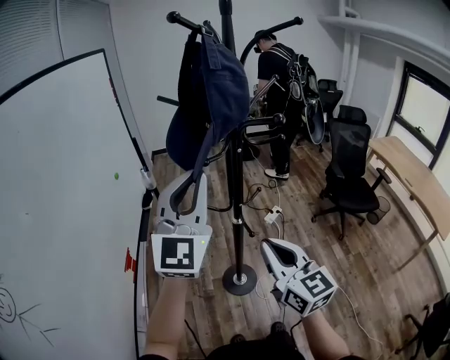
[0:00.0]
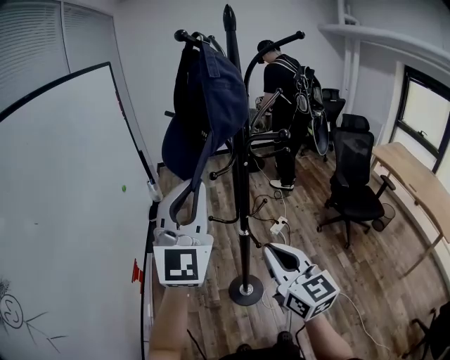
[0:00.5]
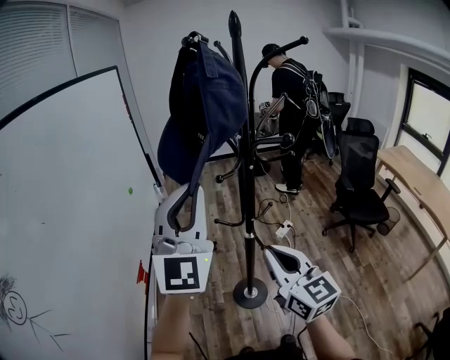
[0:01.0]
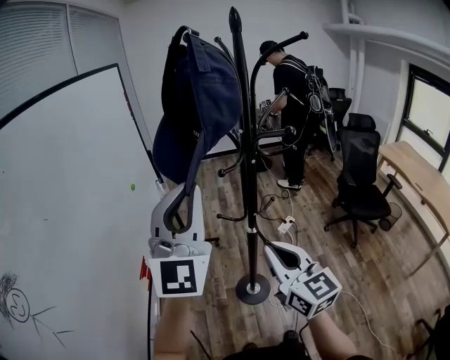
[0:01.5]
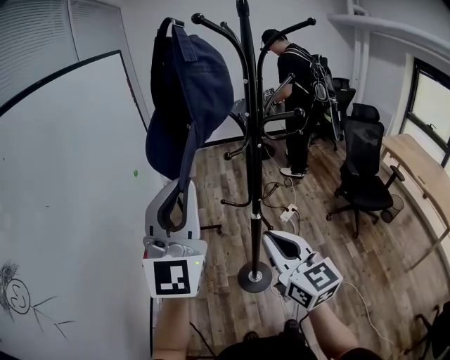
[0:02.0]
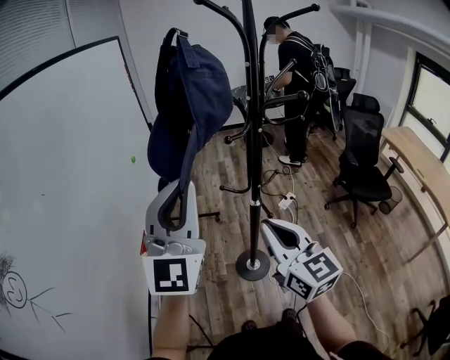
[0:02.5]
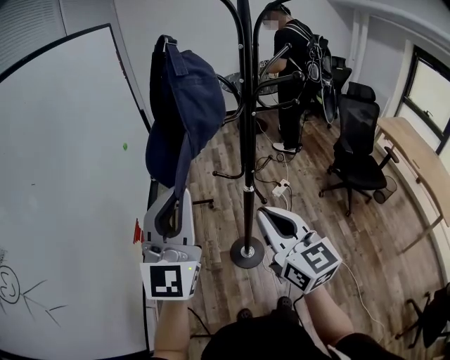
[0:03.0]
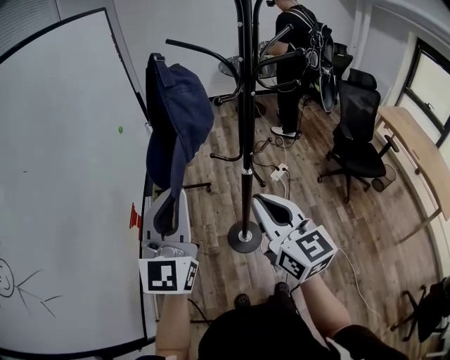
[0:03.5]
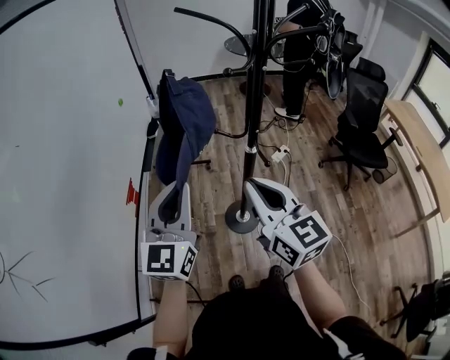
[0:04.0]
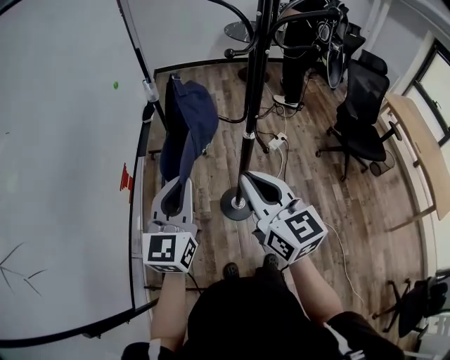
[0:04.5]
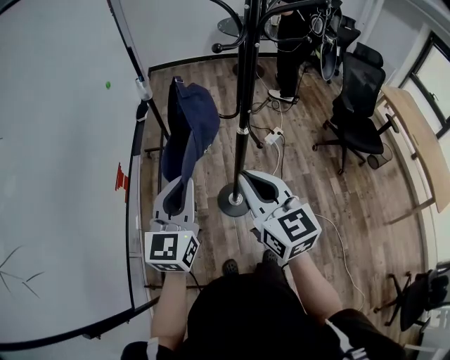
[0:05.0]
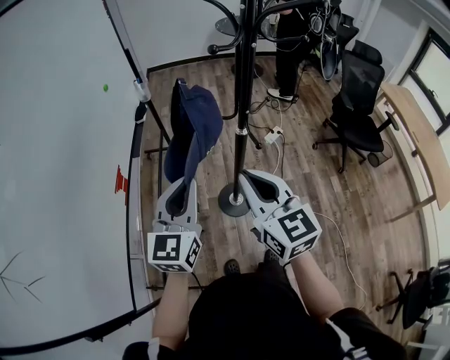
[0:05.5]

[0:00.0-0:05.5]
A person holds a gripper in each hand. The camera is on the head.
0:00.0 to 0:02.0: The left gripper travels backward and to the left by approximately 10 cm.
0:02.0 to 0:03.5: The left gripper heads downward, covering some 10 cm.
0:03.5 to 0:05.5: The right gripper is displaced downward by about 5 cm, while the left gripper shifts roughly 15 cm downward, and turns by approximately 20 degrees.

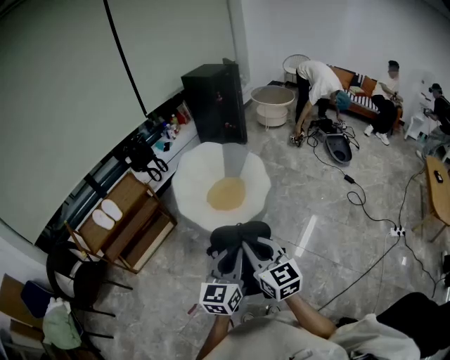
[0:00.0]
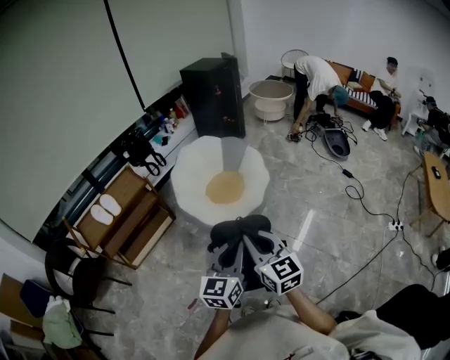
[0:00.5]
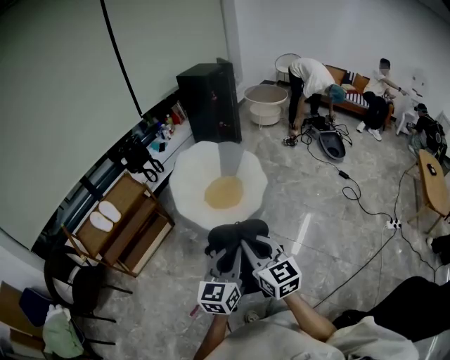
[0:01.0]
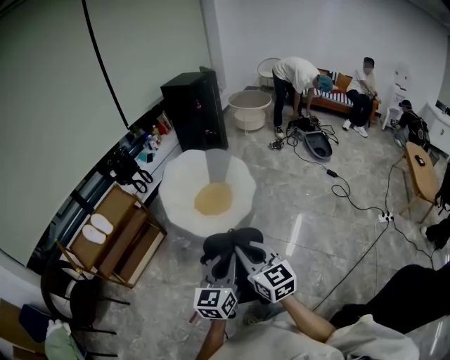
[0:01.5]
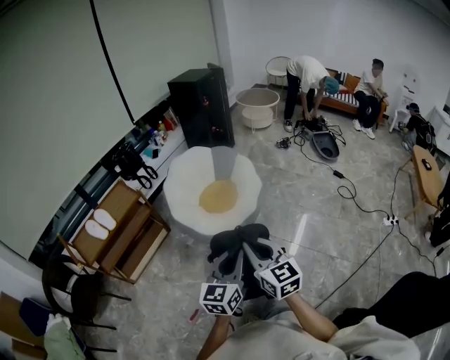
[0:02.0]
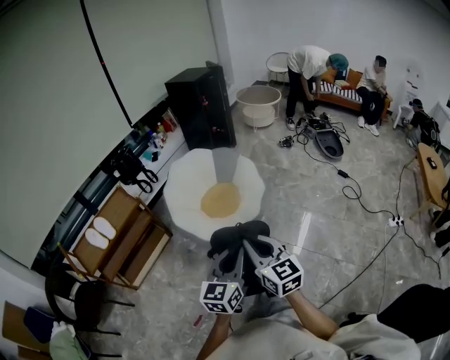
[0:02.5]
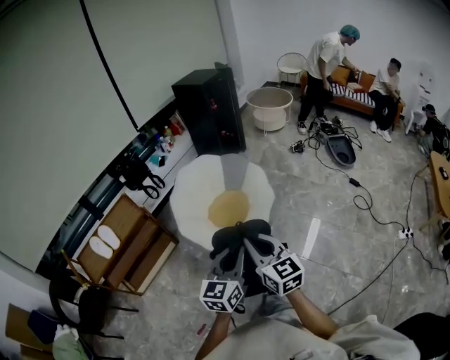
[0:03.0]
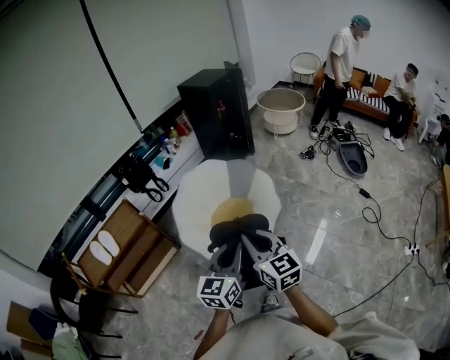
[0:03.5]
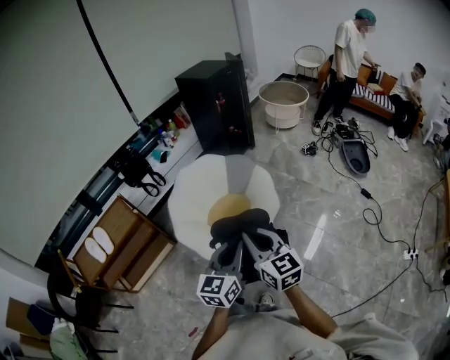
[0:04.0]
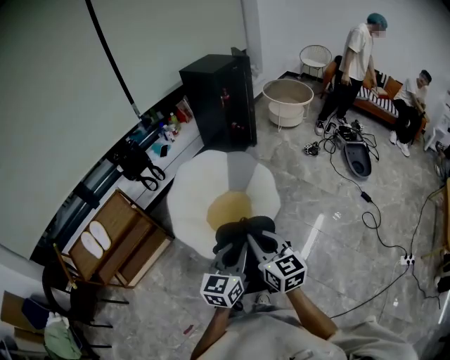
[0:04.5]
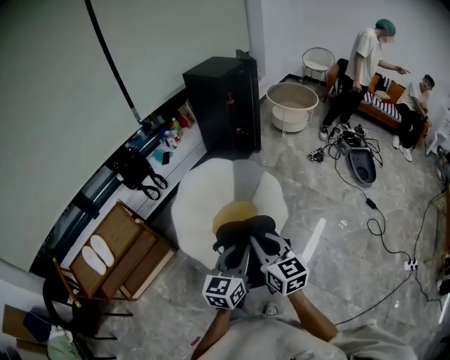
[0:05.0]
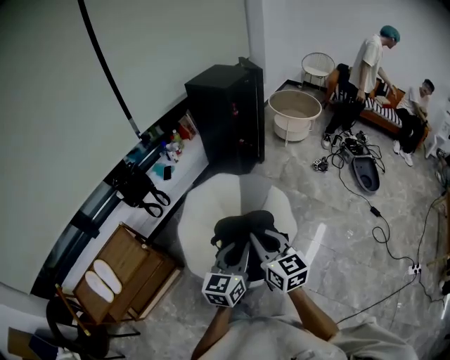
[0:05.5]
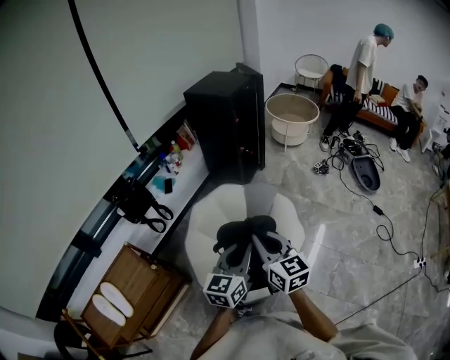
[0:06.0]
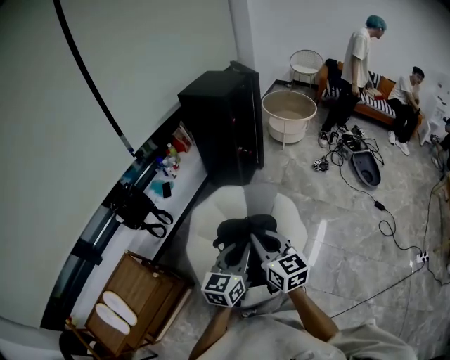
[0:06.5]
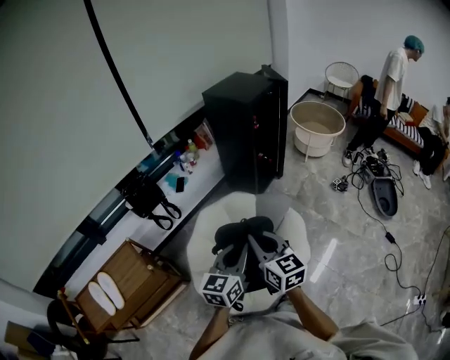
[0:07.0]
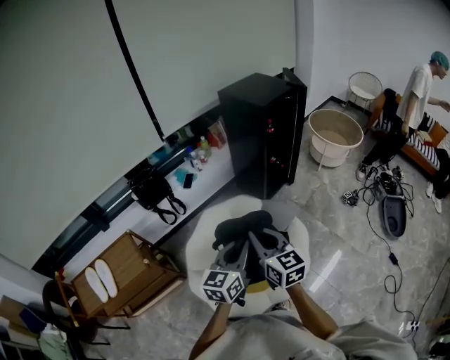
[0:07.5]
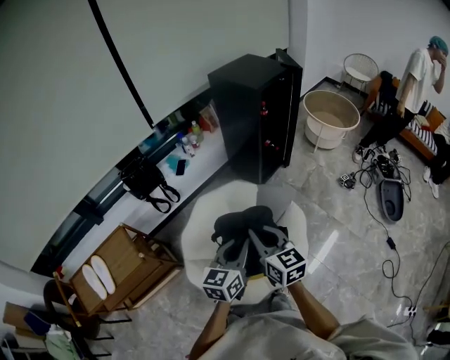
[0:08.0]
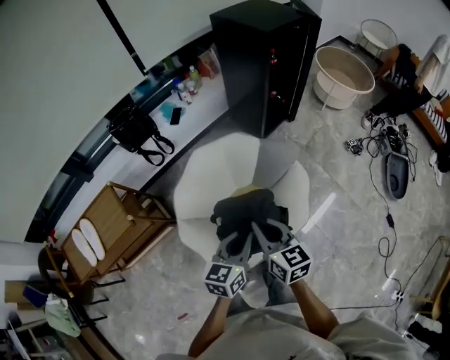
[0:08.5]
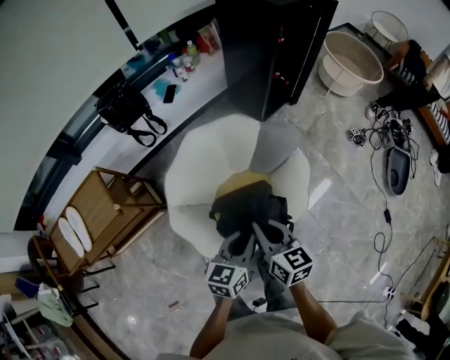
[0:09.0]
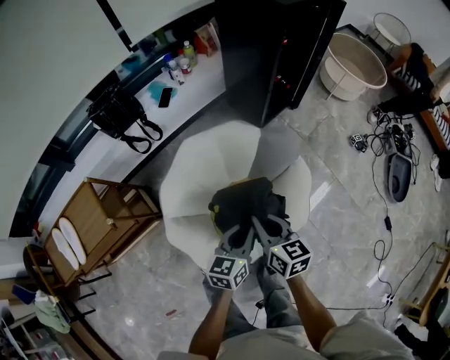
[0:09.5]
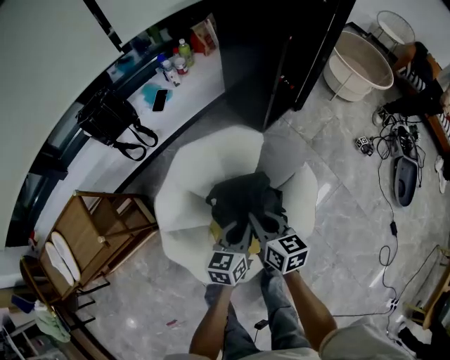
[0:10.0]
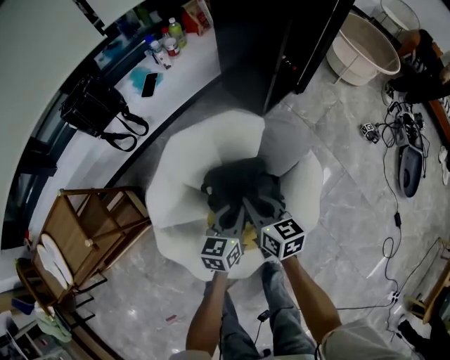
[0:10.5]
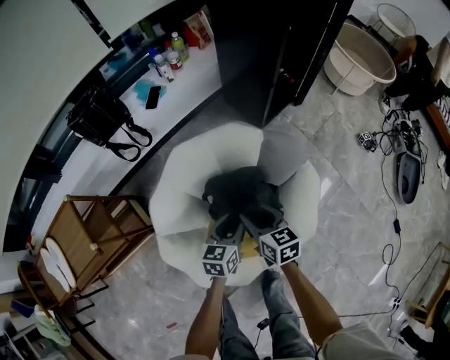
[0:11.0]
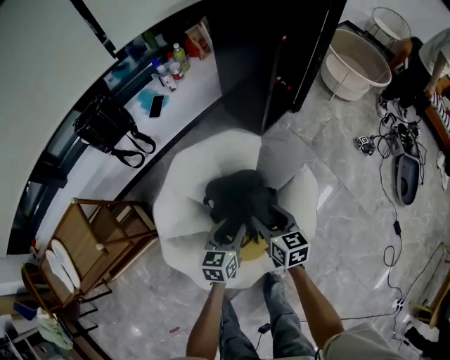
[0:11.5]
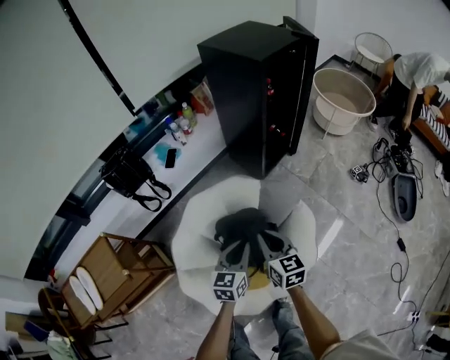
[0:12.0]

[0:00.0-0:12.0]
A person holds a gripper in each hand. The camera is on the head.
0:00.0 to 0:02.0: The grippers make only small movements.
0:02.0 to 0:04.0: The two grippers go some 35 cm forward.
0:04.0 to 0:06.0: Both grippers travel together forward and to the left, approximately 35 cm.
0:06.0 to 0:08.0: The grippers both shift forward and to the right by roughly 15 cm.
0:08.0 to 0:10.0: The two grippers go about 30 cm downward and forward. The right gripper swivels about 20 degrees.
0:10.0 to 0:12.0: The grippers both shift upward by about 10 cm. The right gripper opens, then closes again; the left gripper opens and closes again.

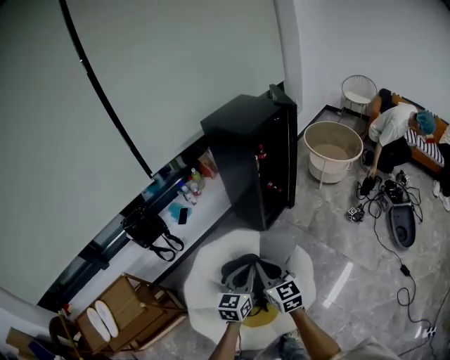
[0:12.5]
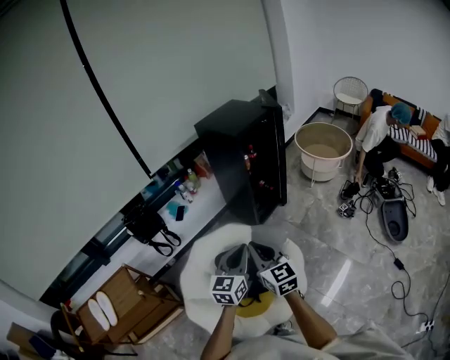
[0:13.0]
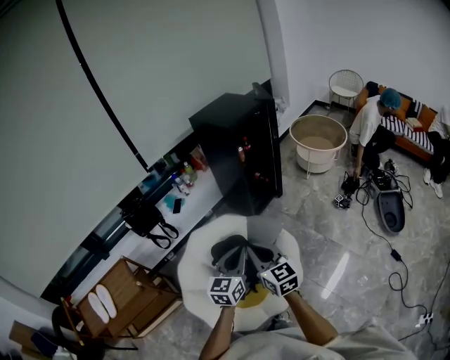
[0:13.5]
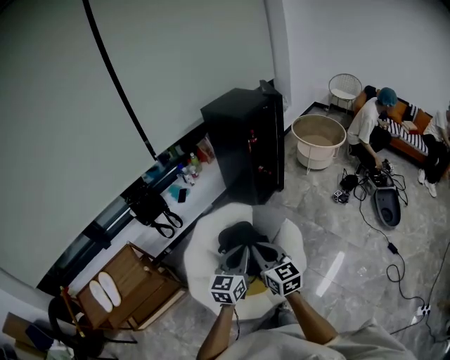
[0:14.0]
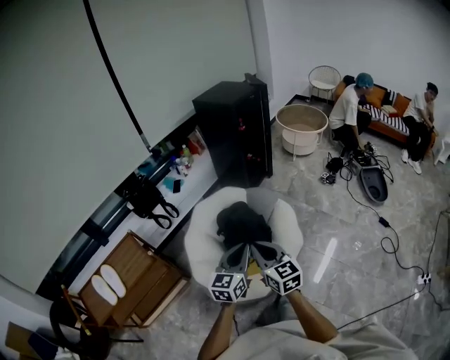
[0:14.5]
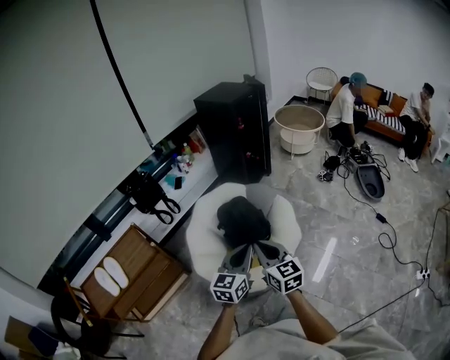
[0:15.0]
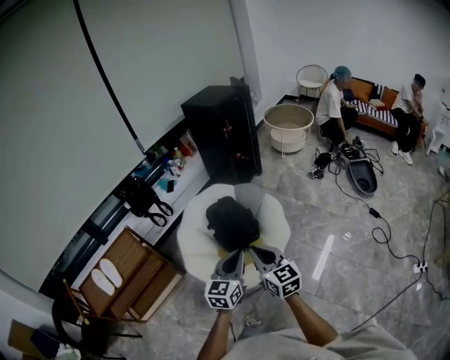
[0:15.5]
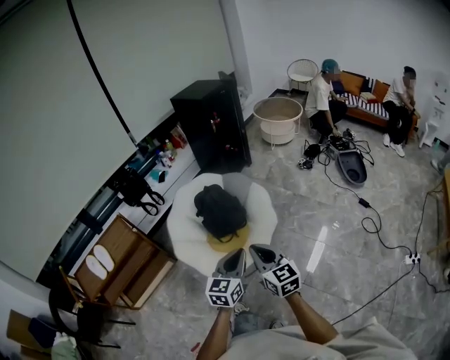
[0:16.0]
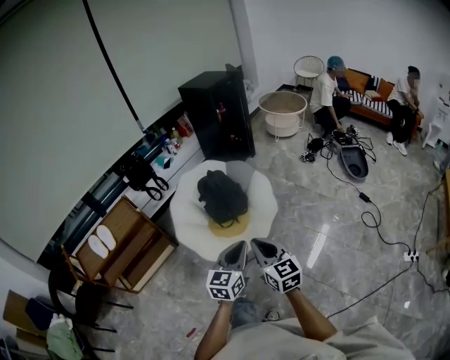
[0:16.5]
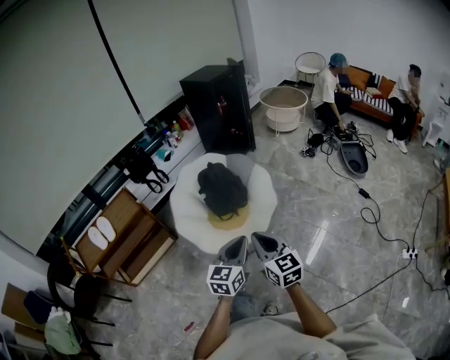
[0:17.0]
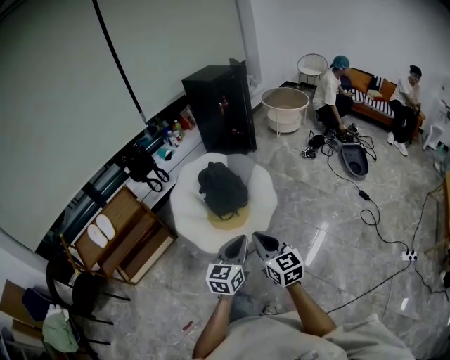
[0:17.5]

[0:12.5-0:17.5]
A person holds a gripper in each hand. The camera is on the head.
0:12.5 to 0:15.0: The two grippers go about 40 cm backward.
0:15.0 to 0:17.5: Both grippers move backward and to the right, about 30 cm.

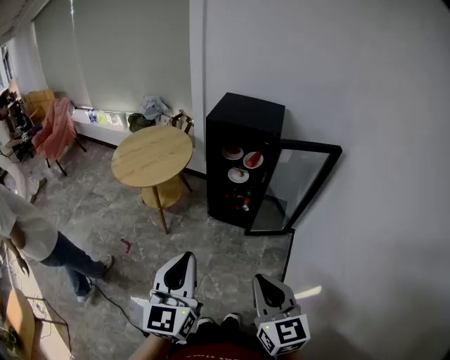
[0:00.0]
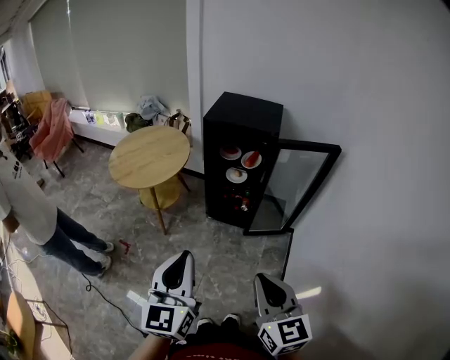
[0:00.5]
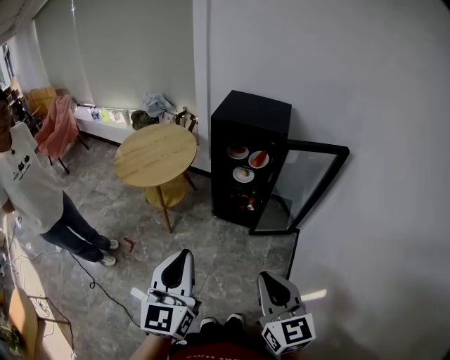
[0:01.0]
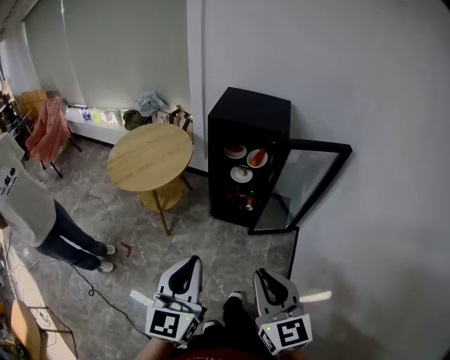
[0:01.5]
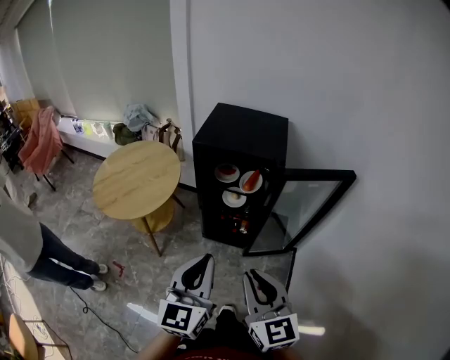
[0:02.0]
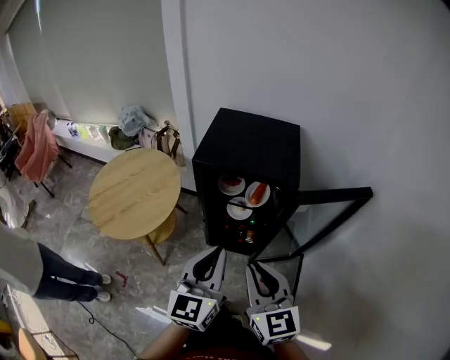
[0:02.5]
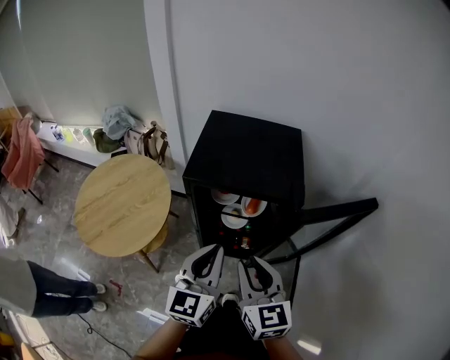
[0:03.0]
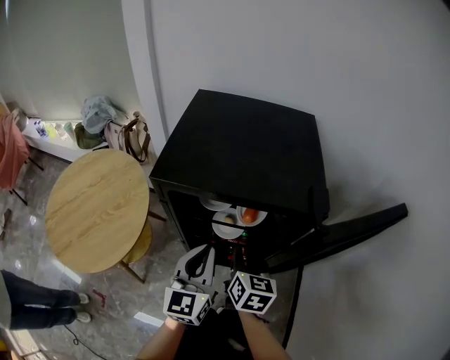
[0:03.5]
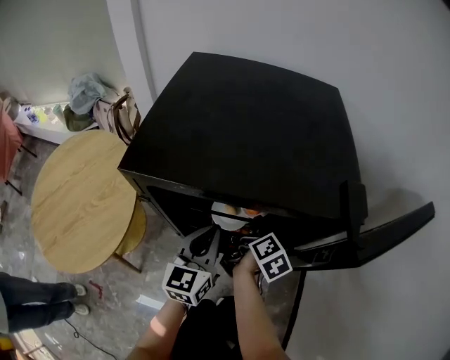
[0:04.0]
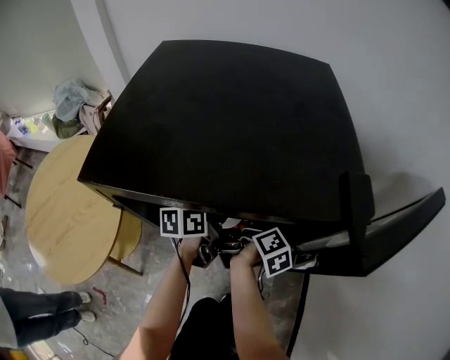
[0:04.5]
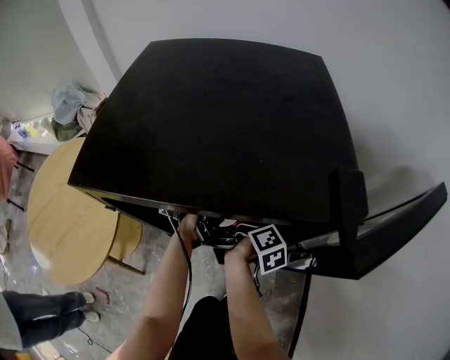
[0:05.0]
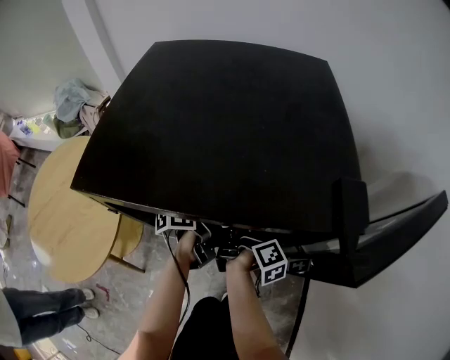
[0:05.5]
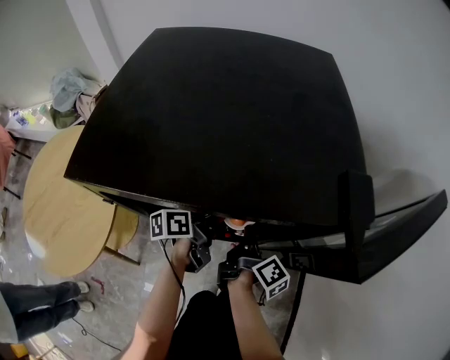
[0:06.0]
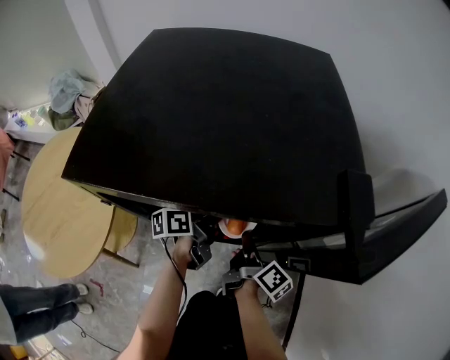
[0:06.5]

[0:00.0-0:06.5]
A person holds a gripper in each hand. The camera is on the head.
0:00.0 to 0:02.0: The two grippers go approximately 25 cm forward.
0:02.0 to 0:04.5: The two grippers travel together, roughly 50 cm. The left gripper swivels about 60 degrees, while the right gripper twists about 80 degrees clockwise, seen from behind, and opens its fingers.
0:04.5 to 0:06.5: The right gripper moves backward, some 10 cm, turns by about 20 degrees, and closes up.
